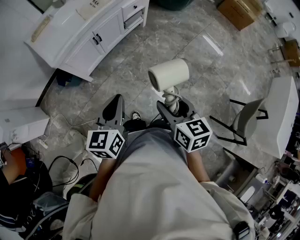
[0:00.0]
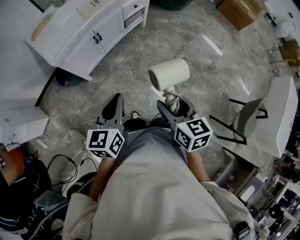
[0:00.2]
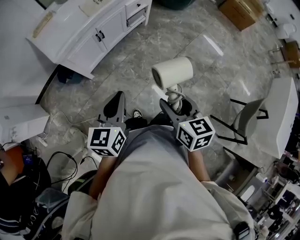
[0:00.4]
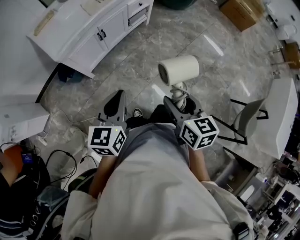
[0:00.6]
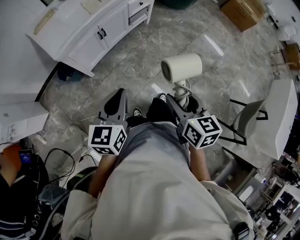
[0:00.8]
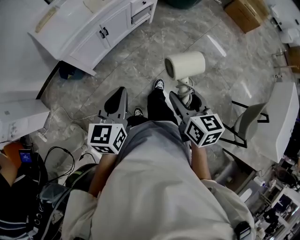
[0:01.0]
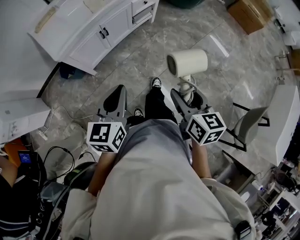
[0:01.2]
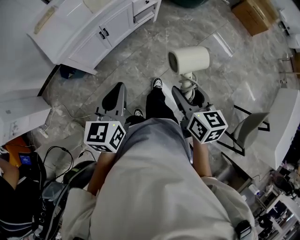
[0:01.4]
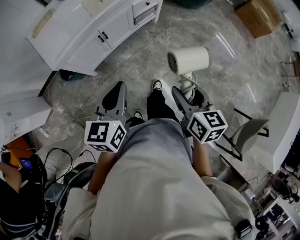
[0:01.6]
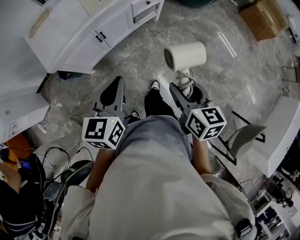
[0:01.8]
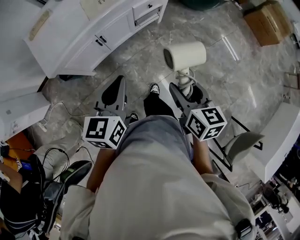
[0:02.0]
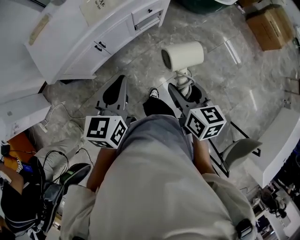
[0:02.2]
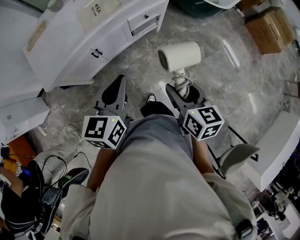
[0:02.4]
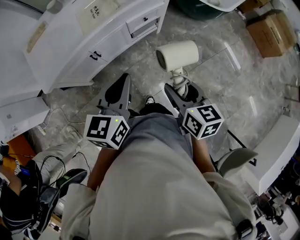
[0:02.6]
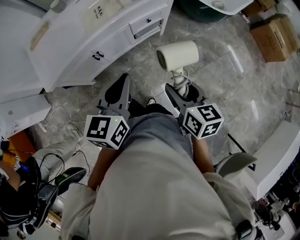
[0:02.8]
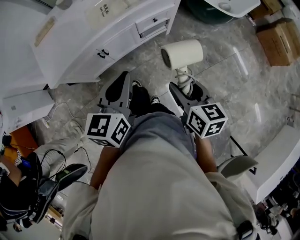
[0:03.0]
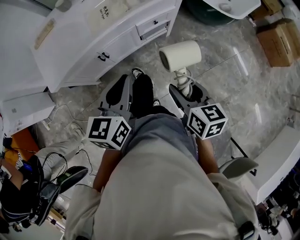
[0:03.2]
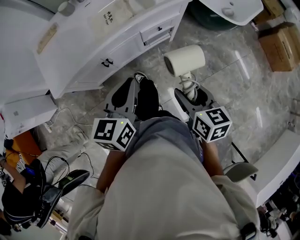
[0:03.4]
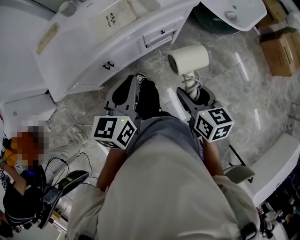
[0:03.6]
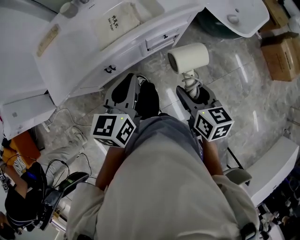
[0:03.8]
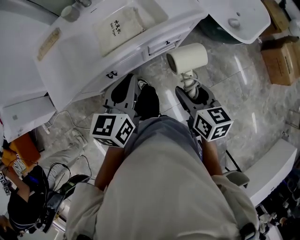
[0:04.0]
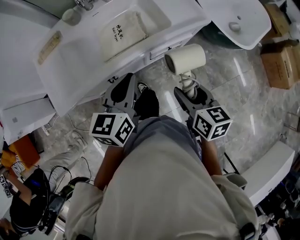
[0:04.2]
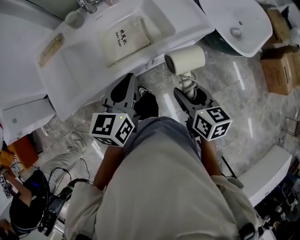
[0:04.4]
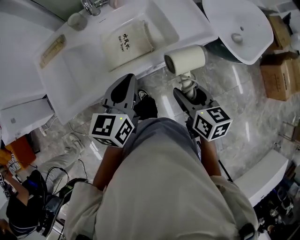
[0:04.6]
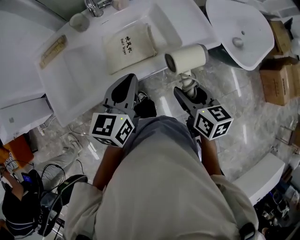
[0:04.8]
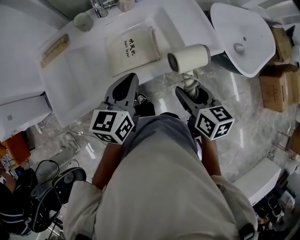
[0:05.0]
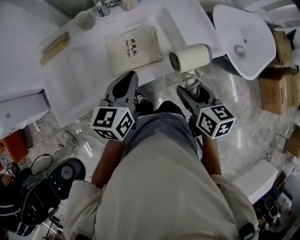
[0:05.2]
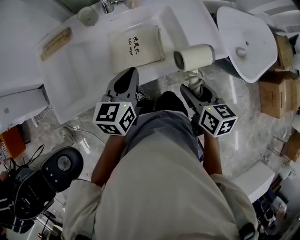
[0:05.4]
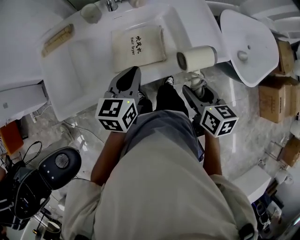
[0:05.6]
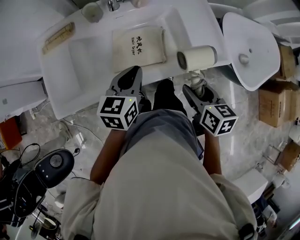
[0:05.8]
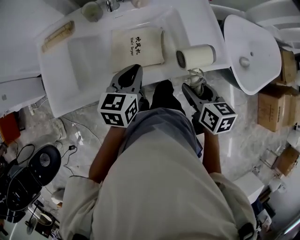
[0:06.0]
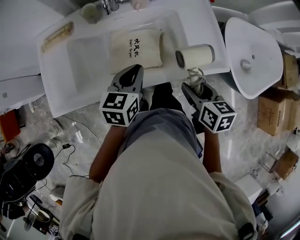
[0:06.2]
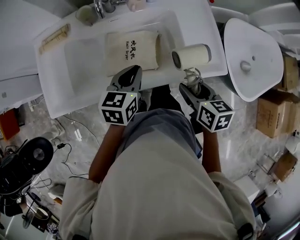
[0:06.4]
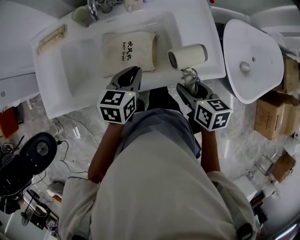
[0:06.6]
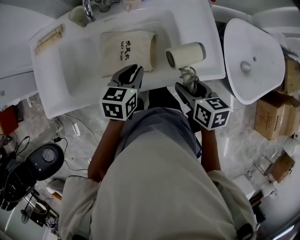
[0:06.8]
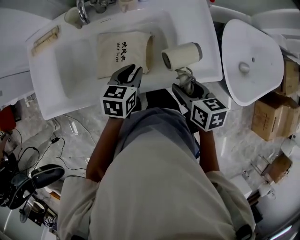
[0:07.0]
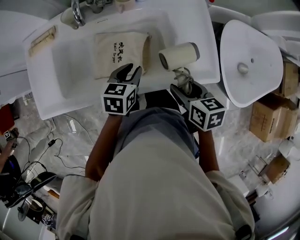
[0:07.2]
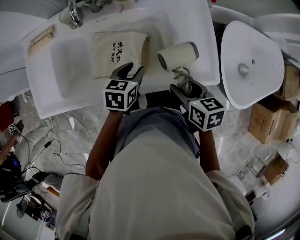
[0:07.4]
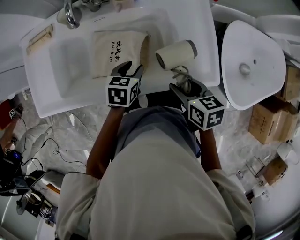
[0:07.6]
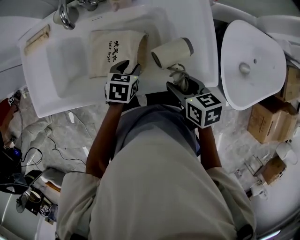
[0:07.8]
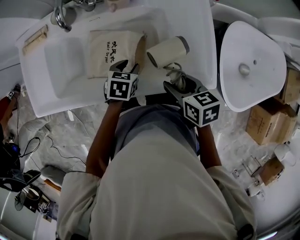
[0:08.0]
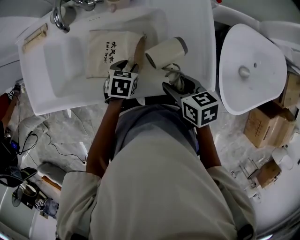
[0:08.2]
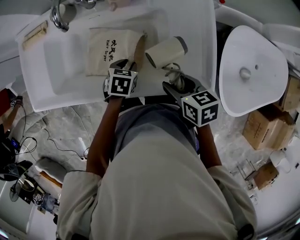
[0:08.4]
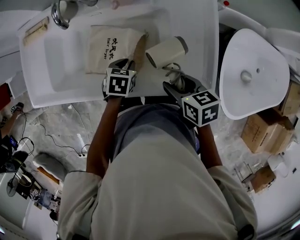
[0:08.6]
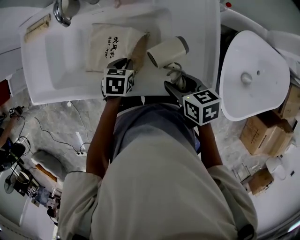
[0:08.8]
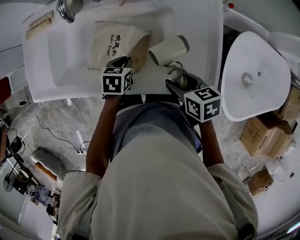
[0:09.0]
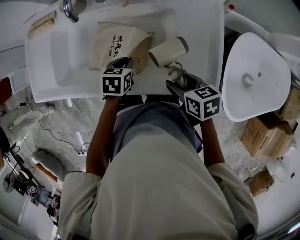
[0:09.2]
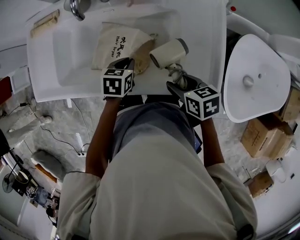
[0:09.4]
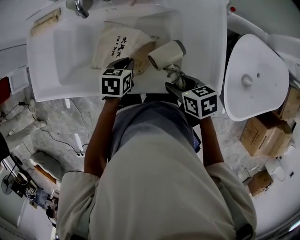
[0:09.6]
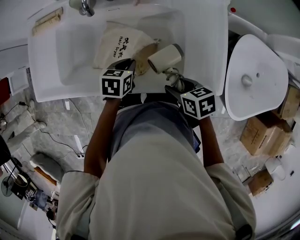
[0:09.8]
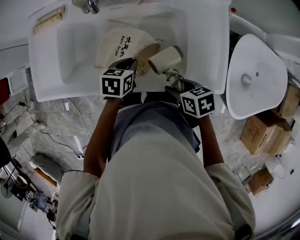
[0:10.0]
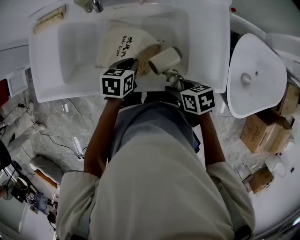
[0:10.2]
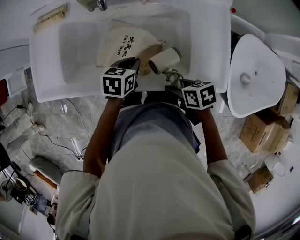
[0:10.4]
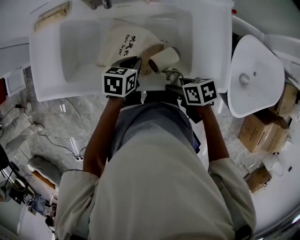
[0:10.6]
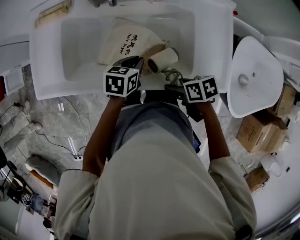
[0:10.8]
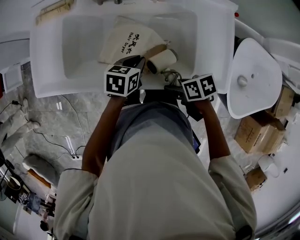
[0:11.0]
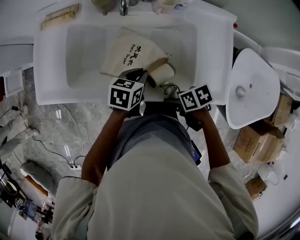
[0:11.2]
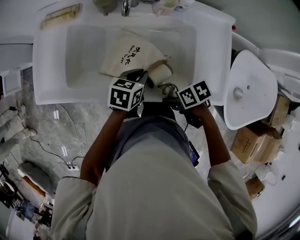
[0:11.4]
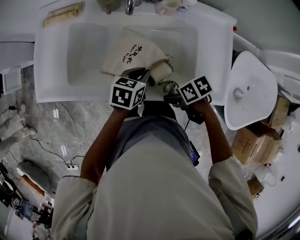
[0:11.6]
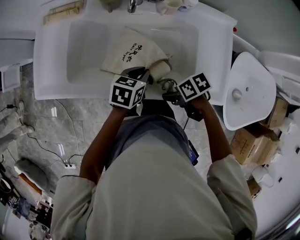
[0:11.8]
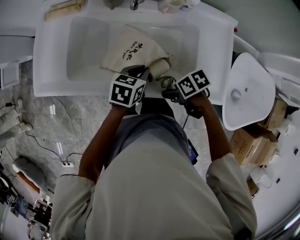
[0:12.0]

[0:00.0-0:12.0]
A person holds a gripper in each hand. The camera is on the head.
0:00.0 to 0:01.6: The two grippers go about 15 cm forward.
0:01.6 to 0:03.0: Both grippers move forward and to the right, about 25 cm.
0:03.0 to 0:04.4: The grippers both shift forward by some 25 cm.
0:04.4 to 0:06.0: The right gripper heads forward, covering about 15 cm. The left gripper is displaced forward and downward by approximately 15 cm.
0:06.0 to 0:07.6: The right gripper travels forward, to the right and downward by roughly 15 cm. The left gripper heads downward, to the right and forward, covering approximately 20 cm, turns by about 20 degrees, and opens.
0:07.6 to 0:09.0: The left gripper ends up approximately 5 cm from where it was, and closes. The right gripper changes place by about 5 cm.
0:09.0 to 0:10.4: The left gripper travels to the left by approximately 5 cm; the right gripper goes some 10 cm to the left.
0:10.4 to 0:12.0: The right gripper shifts by some 5 cm, and turns by approximately 20 degrees.

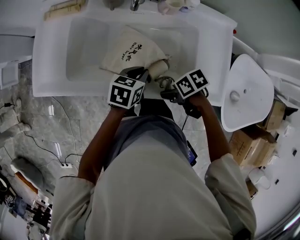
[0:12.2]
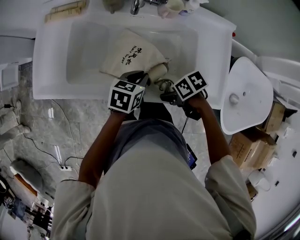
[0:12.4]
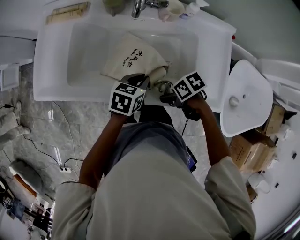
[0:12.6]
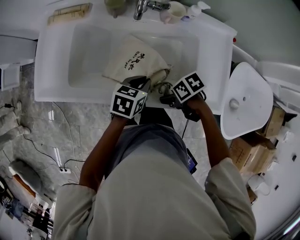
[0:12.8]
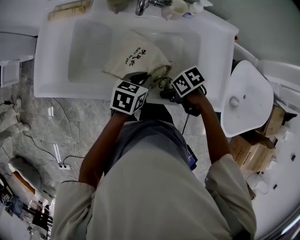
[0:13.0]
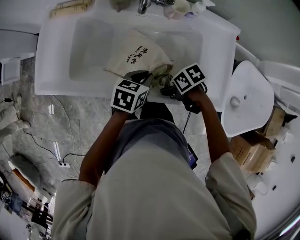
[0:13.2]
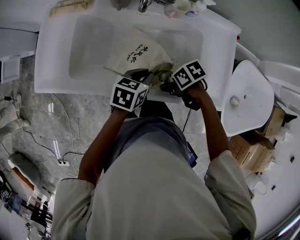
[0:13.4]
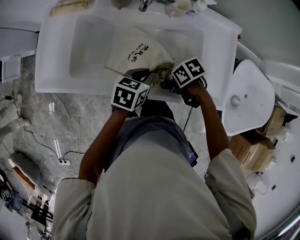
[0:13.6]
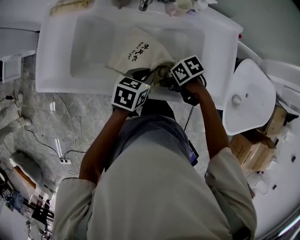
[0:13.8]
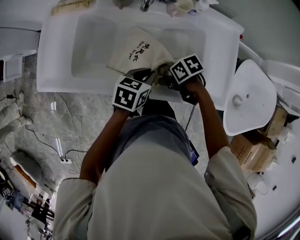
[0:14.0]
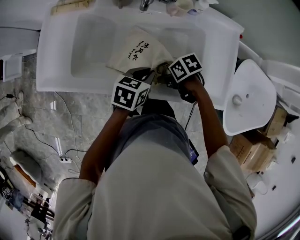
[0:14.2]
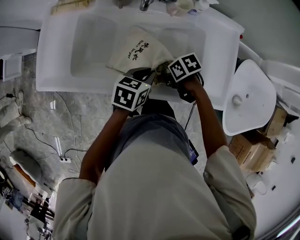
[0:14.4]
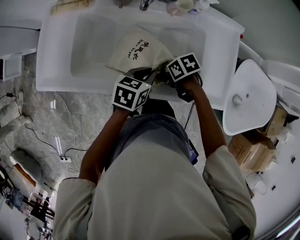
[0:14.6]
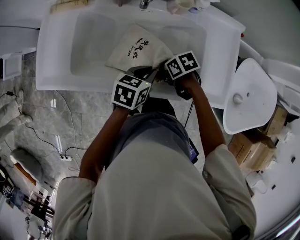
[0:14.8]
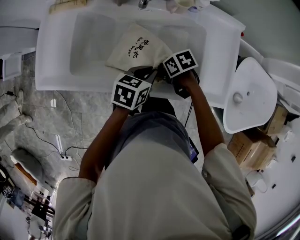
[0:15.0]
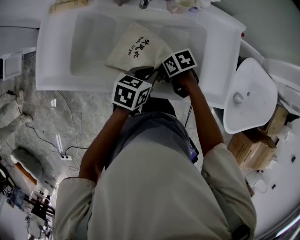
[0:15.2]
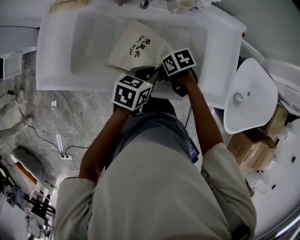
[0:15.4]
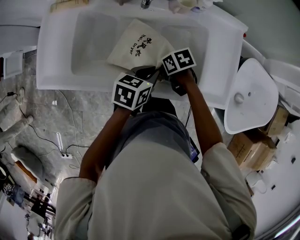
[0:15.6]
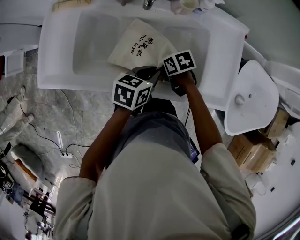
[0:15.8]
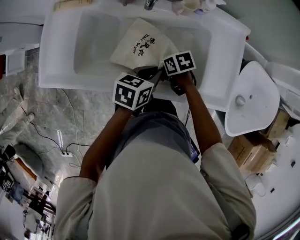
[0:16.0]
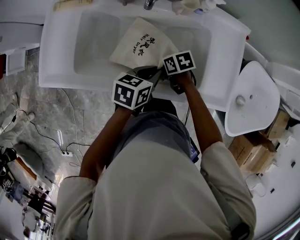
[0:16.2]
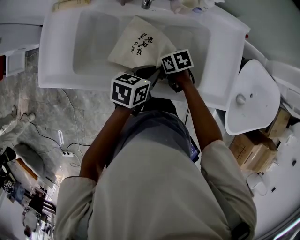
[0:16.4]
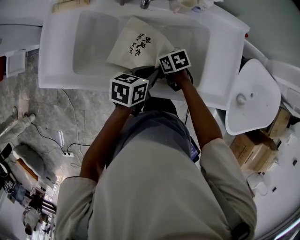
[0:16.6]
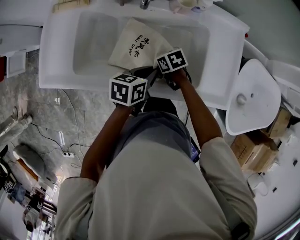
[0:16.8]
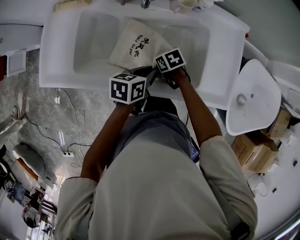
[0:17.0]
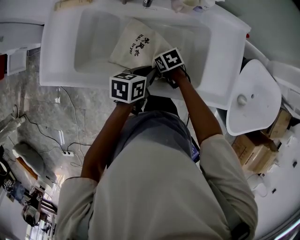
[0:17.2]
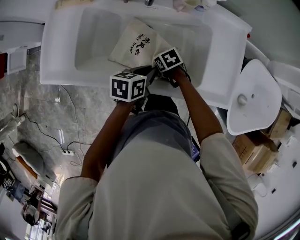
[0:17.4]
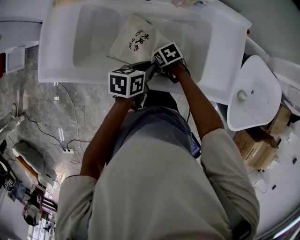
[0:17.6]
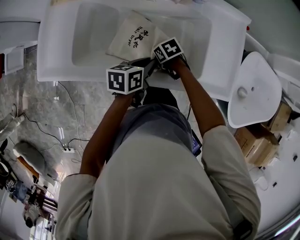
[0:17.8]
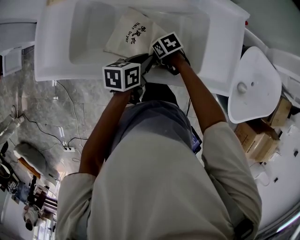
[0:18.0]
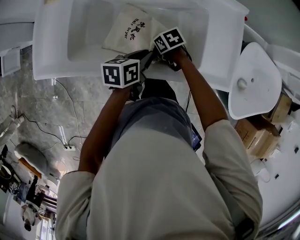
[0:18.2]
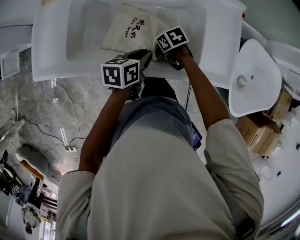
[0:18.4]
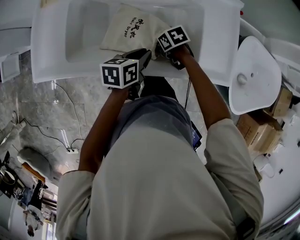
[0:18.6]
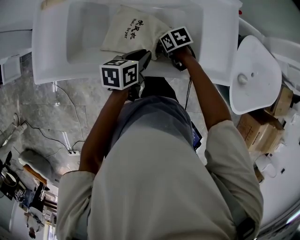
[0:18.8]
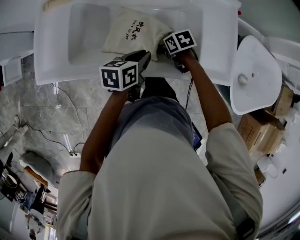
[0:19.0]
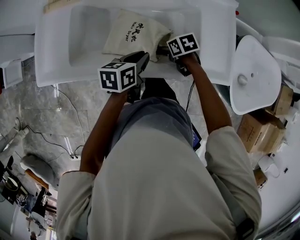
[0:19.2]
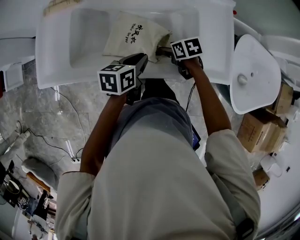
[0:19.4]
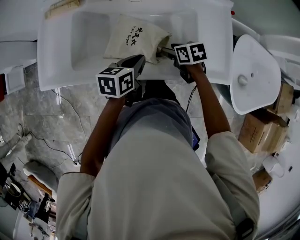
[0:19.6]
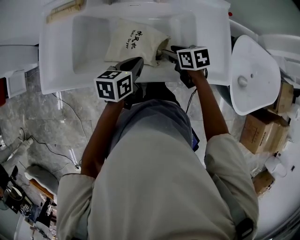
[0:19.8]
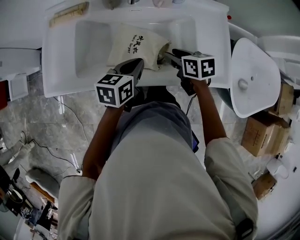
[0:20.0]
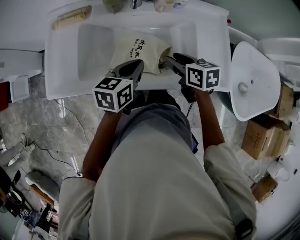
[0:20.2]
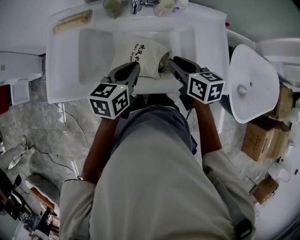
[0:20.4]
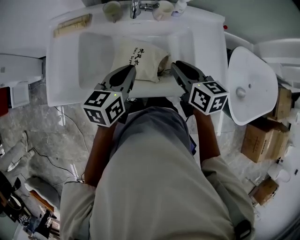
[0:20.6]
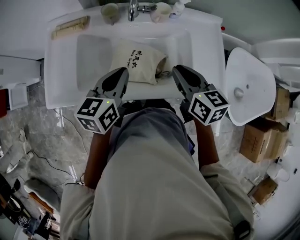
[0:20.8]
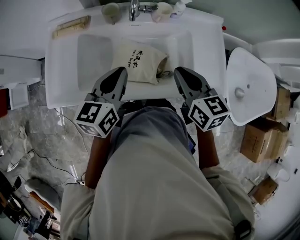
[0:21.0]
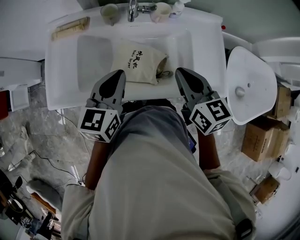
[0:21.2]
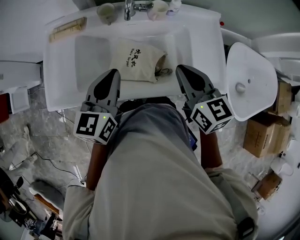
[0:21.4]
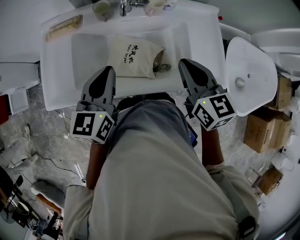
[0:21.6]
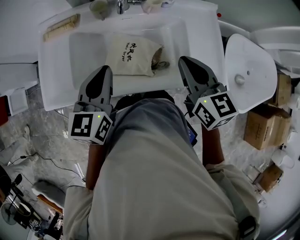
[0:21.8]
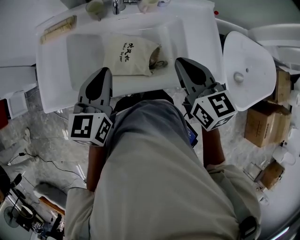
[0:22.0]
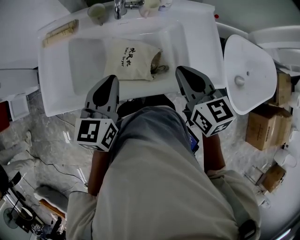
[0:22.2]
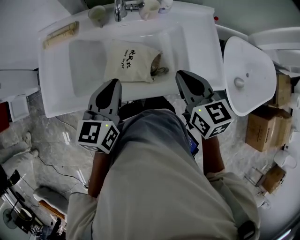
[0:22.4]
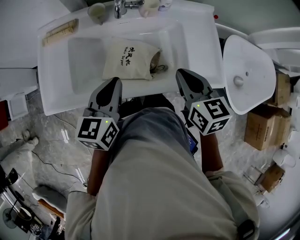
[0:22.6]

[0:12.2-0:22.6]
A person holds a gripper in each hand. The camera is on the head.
0:12.2 to 0:13.6: The right gripper shifts by approximately 5 cm.
0:13.6 to 0:15.2: The right gripper ends up approximately 5 cm from where it was.
0:15.2 to 0:16.6: The right gripper changes place by some 5 cm.
0:16.6 to 0:18.2: The grippers make only small movements.
0:18.2 to 0:19.6: The right gripper is displaced upward by roughly 10 cm, and changes its angle by roughly 20 degrees. The left gripper moves approximately 5 cm.
0:19.6 to 0:21.2: The right gripper moves upward, roughly 25 cm, tips its fingers upward by approximately 30 degrees, and closes. Meanwhile the left gripper heads upward and to the left, covering some 20 cm, and rotates roughly 30 degrees.
0:21.2 to 0:22.6: The grippers stay close to where they were, moving slightly.

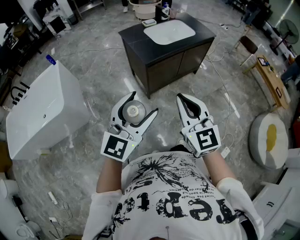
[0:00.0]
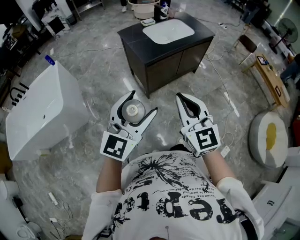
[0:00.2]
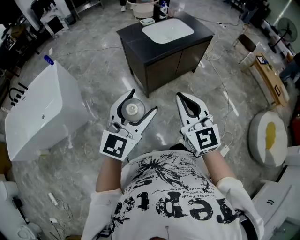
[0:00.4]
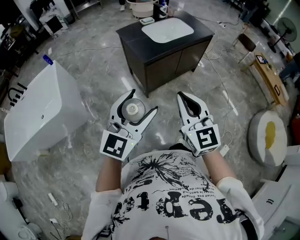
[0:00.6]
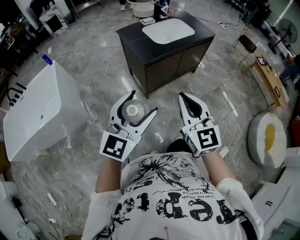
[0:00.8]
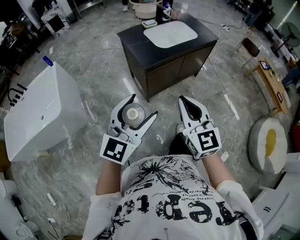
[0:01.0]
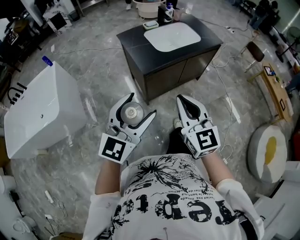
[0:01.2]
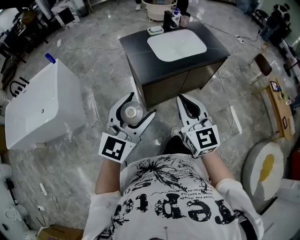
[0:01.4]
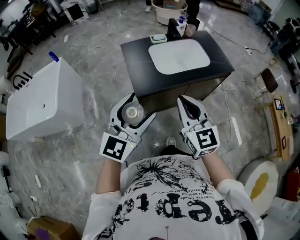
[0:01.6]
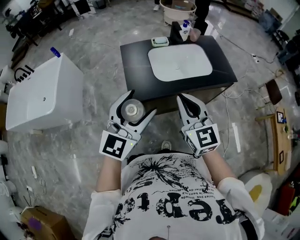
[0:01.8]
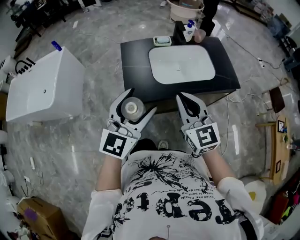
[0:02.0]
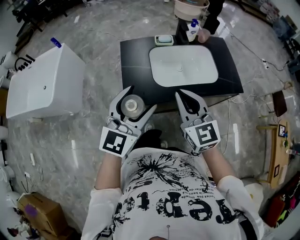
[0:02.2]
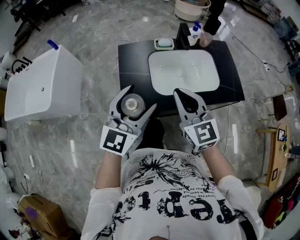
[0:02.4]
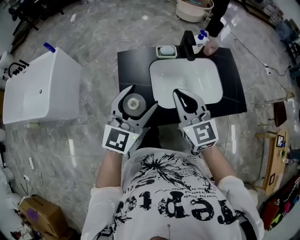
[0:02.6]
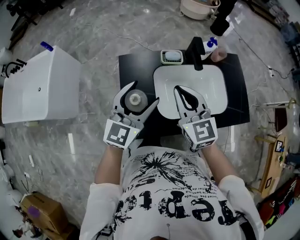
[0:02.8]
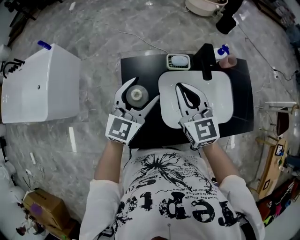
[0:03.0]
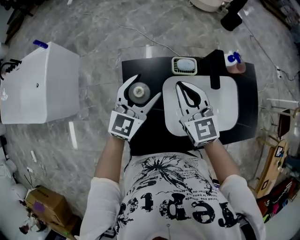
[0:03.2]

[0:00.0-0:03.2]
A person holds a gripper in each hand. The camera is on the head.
0:00.0 to 0:01.6: Both grippers move forward, roughly 35 cm.
0:01.6 to 0:03.2: The pair of grippers is taken forward, about 60 cm.
